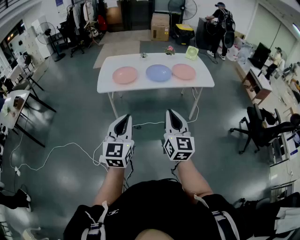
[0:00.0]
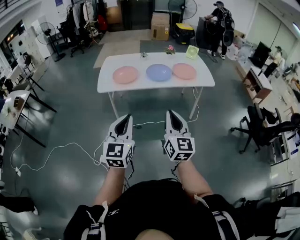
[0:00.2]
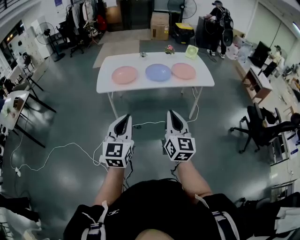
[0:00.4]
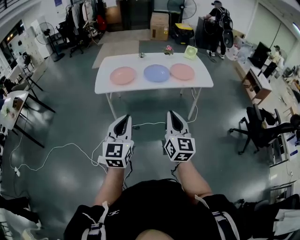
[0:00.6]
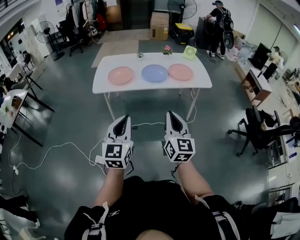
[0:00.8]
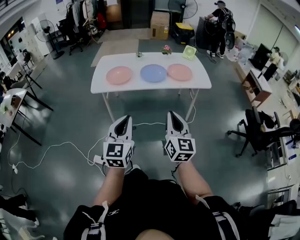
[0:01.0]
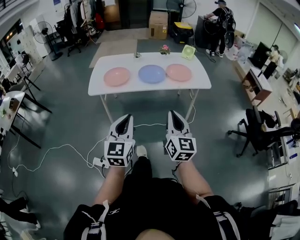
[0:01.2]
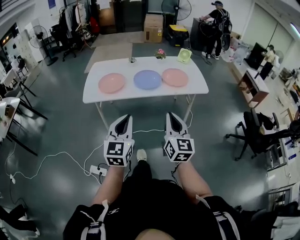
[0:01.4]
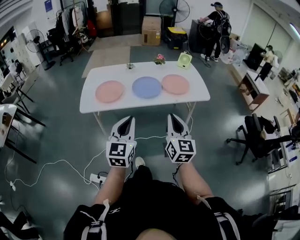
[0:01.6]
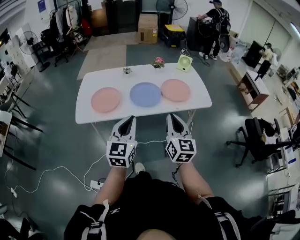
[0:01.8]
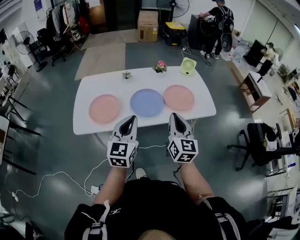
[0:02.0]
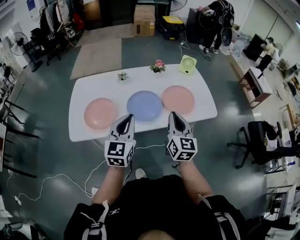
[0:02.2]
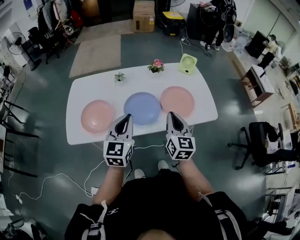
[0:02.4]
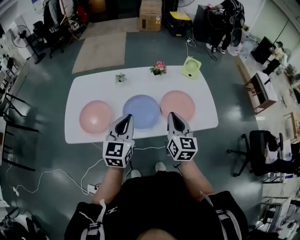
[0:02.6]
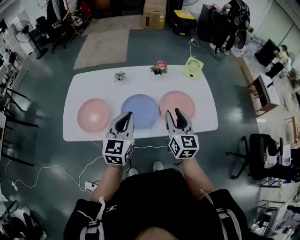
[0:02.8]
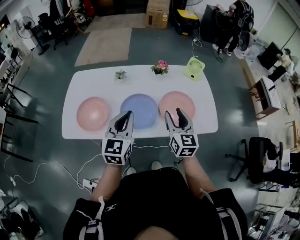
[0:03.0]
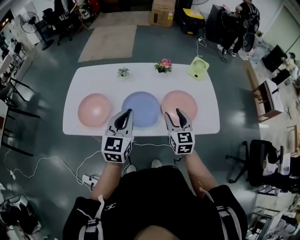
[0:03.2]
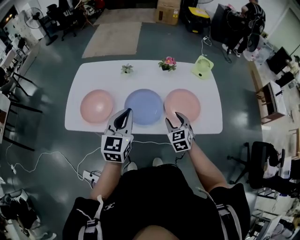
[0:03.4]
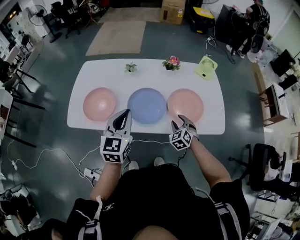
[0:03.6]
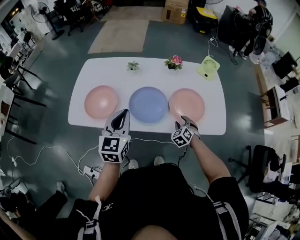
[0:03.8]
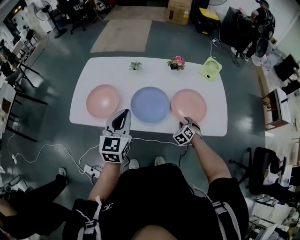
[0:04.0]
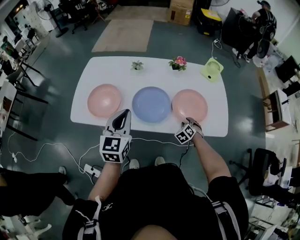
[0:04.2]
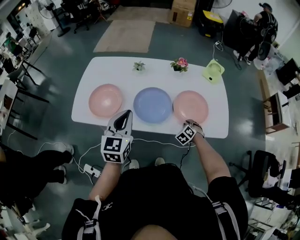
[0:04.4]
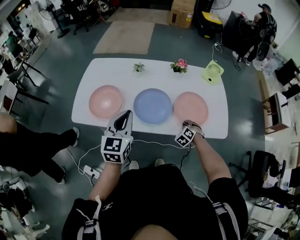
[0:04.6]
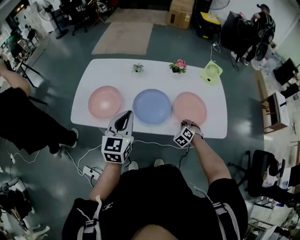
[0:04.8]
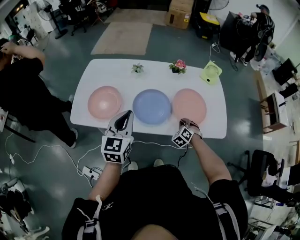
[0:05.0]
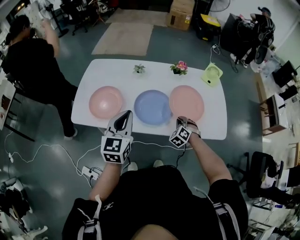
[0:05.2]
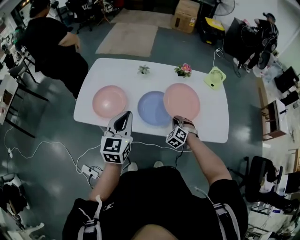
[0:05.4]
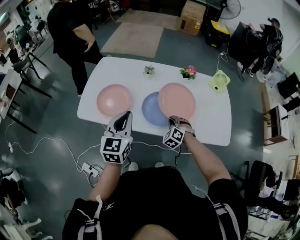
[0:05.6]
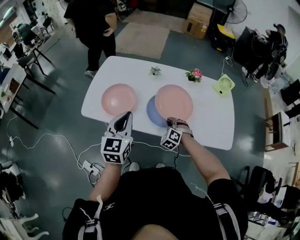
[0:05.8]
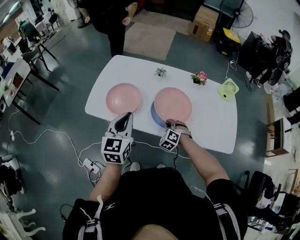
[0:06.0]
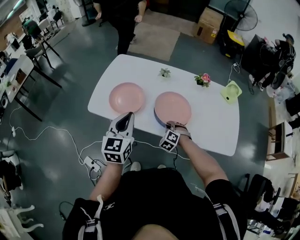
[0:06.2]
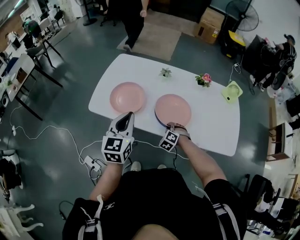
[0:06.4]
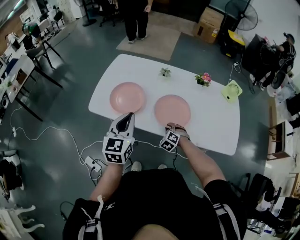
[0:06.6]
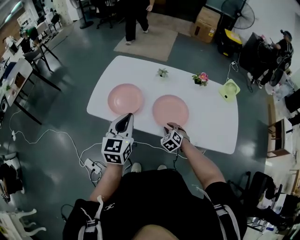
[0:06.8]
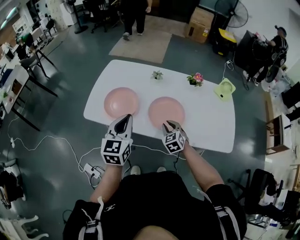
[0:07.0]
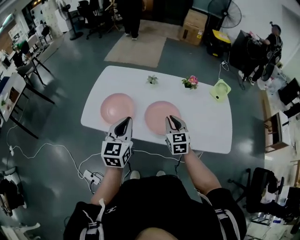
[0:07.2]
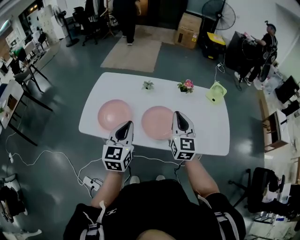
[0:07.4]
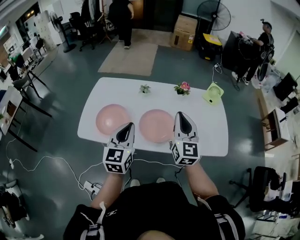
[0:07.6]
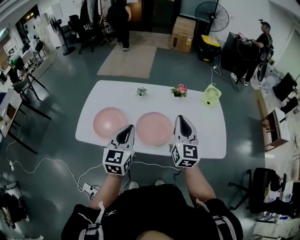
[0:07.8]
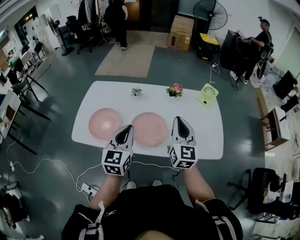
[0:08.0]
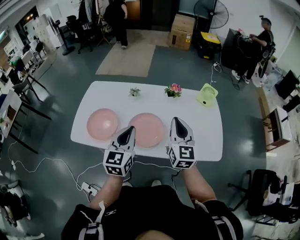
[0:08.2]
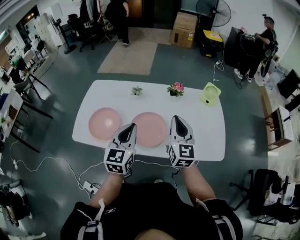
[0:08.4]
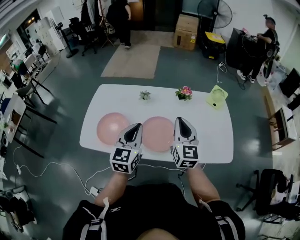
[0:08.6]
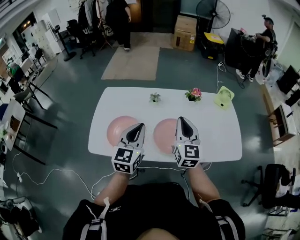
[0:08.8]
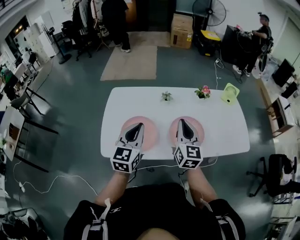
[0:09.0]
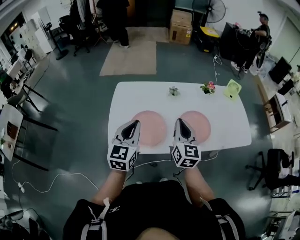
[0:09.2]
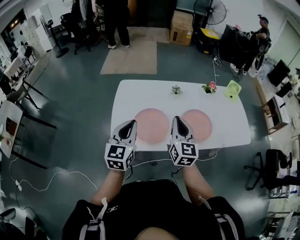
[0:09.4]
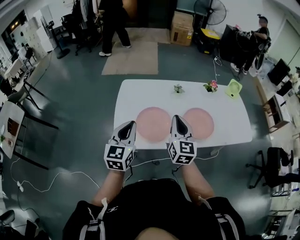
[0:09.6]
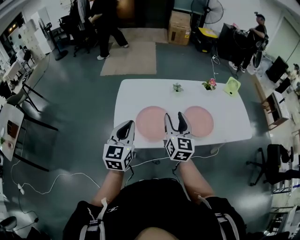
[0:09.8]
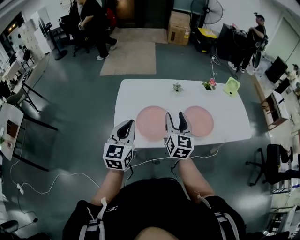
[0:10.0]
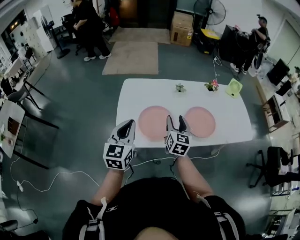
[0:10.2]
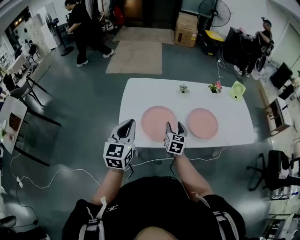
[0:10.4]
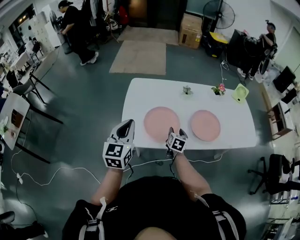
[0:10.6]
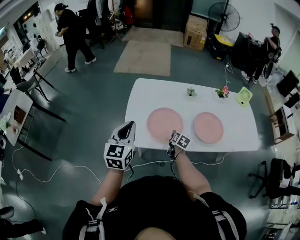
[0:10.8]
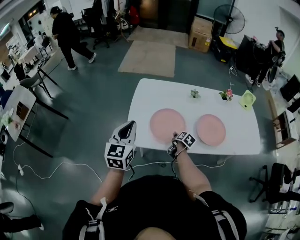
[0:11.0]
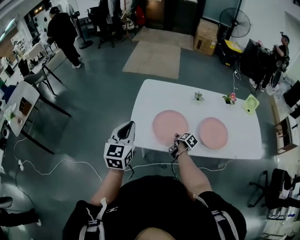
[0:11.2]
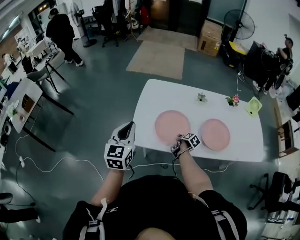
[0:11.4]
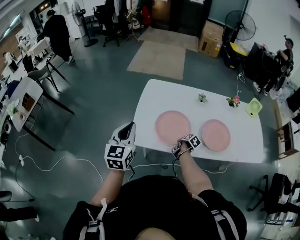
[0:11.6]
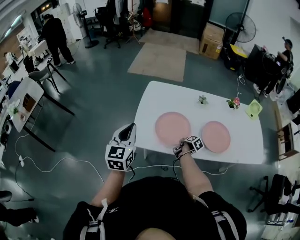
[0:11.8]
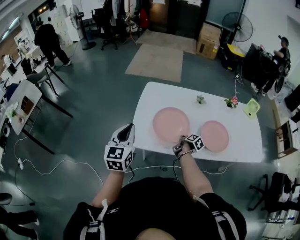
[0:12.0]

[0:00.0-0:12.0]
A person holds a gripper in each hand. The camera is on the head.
0:00.0 to 0:01.6: Both grippers move forward, roughly 25 cm.
0:01.6 to 0:03.0: The pair of grippers is taken forward, roughly 50 cm. The right gripper opens up.
0:03.0 to 0:04.4: The left gripper is displaced to the left by approximately 5 cm. The right gripper shifts about 30 cm downward, angles its fingers downward, by approximately 50 degrees, and closes.
0:04.4 to 0:06.0: The left gripper travels to the left by roughly 10 cm. Meanwhile the right gripper moves to the left, some 25 cm, and turns by approximately 30 degrees.
0:06.0 to 0:07.6: The left gripper shifts about 5 cm to the right, while the right gripper heads upward, covering approximately 30 cm, and tilts its fingers some 50 degrees upward.
0:07.6 to 0:09.0: The right gripper shifts roughly 20 cm to the left. The left gripper moves to the left and forward, approximately 20 cm.
0:09.0 to 0:10.4: The right gripper moves to the left and downward, some 25 cm, swivels some 20 degrees, and opens its fingers. Meanwhile the left gripper heads to the left and backward, covering about 25 cm.
0:10.4 to 0:12.0: The right gripper shifts roughly 15 cm downward, rolls clockwise, seen from behind, by about 60 degrees, and closes up. Meanwhile the left gripper goes some 5 cm to the left.

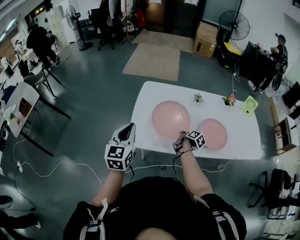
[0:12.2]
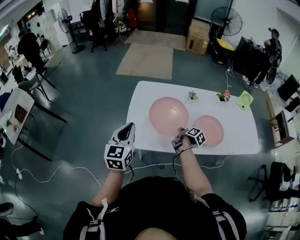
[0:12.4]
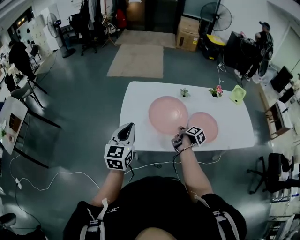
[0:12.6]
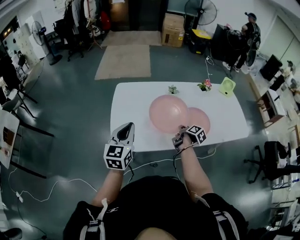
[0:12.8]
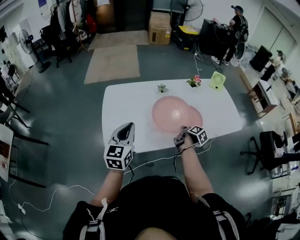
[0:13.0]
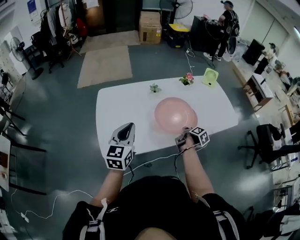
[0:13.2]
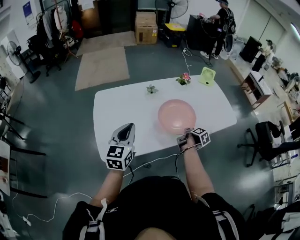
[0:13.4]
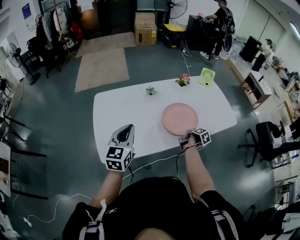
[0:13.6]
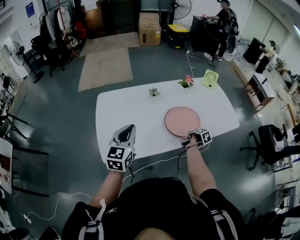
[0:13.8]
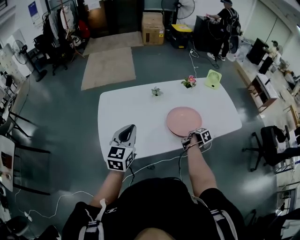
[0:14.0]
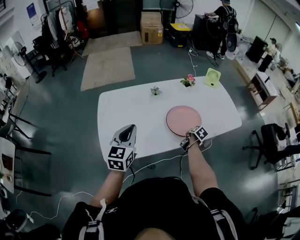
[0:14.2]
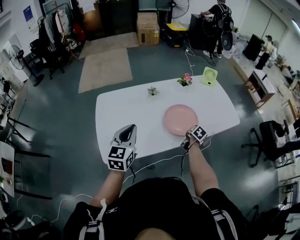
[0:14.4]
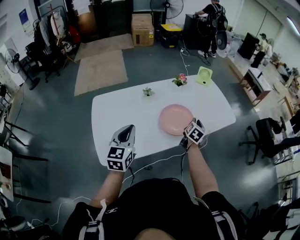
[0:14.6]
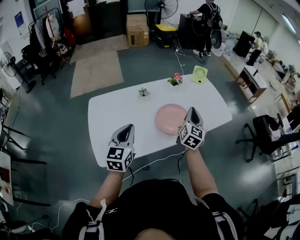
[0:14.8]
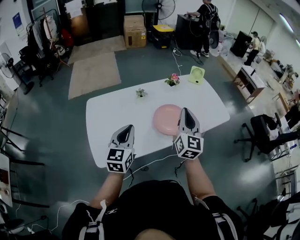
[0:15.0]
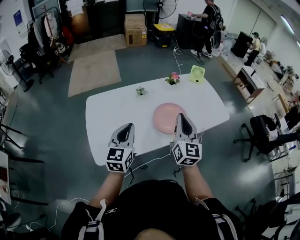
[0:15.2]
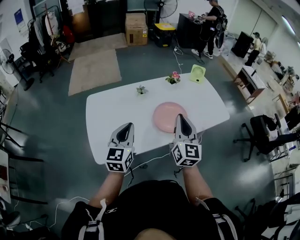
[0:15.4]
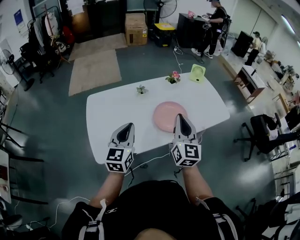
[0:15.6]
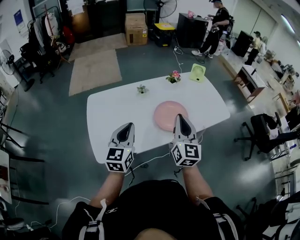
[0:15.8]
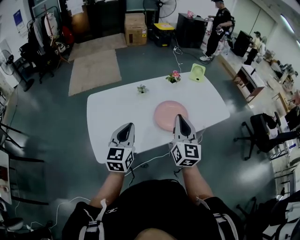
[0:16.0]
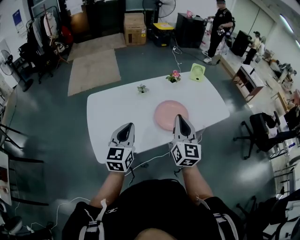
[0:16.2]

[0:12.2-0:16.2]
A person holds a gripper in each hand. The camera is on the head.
0:12.2 to 0:13.6: The left gripper changes place by approximately 20 cm, and rotates about 30 degrees; the right gripper ends up about 30 cm from where it was, and changes its angle by approximately 40 degrees.
0:13.6 to 0:14.8: The right gripper is displaced upward by roughly 25 cm, tips its fingers upward by roughly 40 degrees, and opens, then closes once more.
0:14.8 to 0:16.2: The right gripper heads backward and to the left, covering about 15 cm.

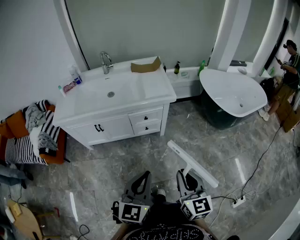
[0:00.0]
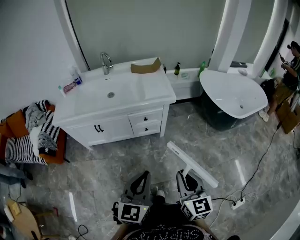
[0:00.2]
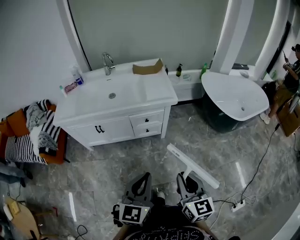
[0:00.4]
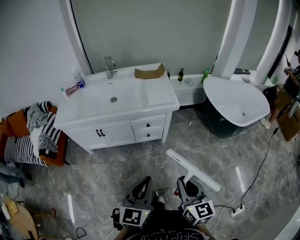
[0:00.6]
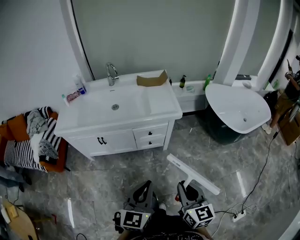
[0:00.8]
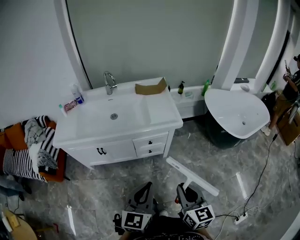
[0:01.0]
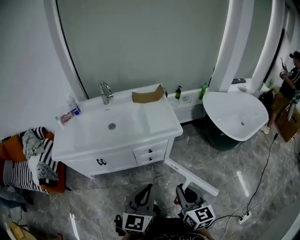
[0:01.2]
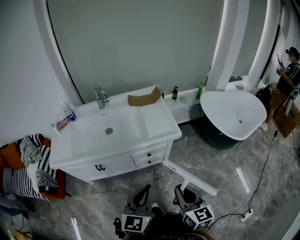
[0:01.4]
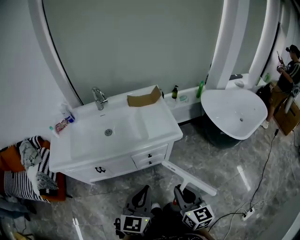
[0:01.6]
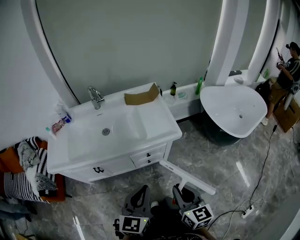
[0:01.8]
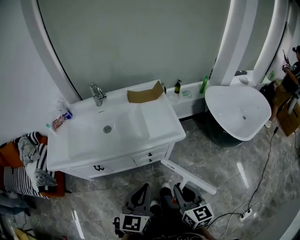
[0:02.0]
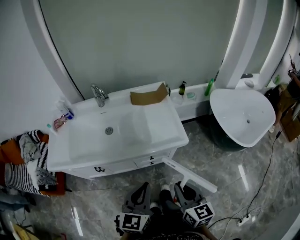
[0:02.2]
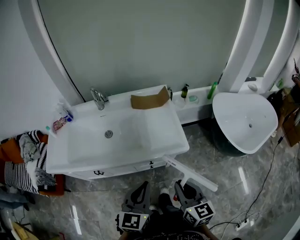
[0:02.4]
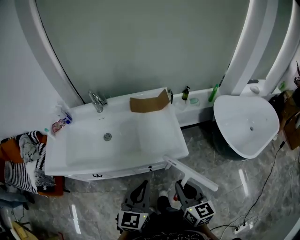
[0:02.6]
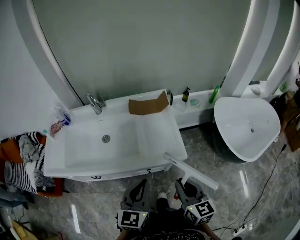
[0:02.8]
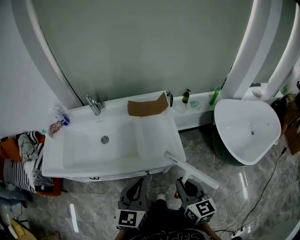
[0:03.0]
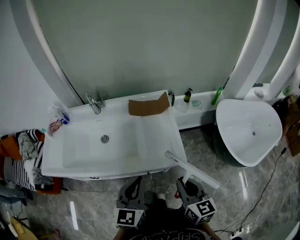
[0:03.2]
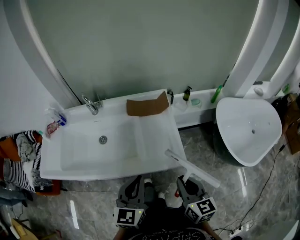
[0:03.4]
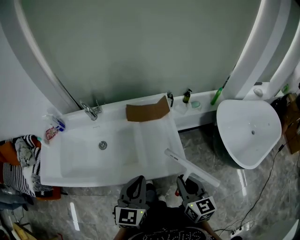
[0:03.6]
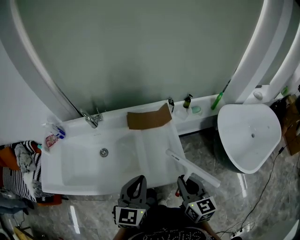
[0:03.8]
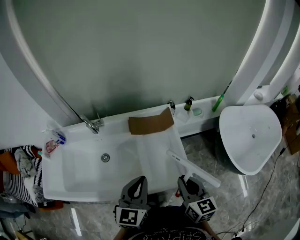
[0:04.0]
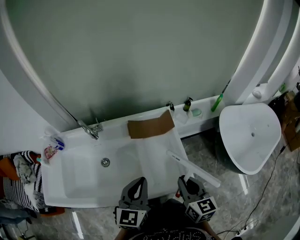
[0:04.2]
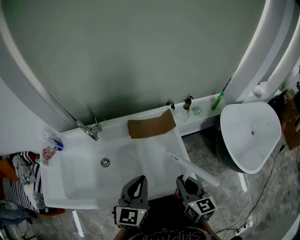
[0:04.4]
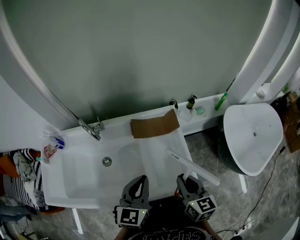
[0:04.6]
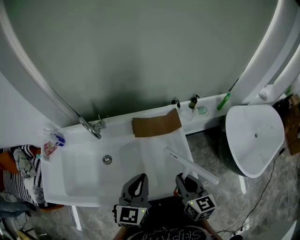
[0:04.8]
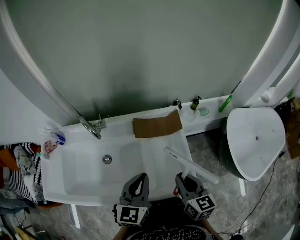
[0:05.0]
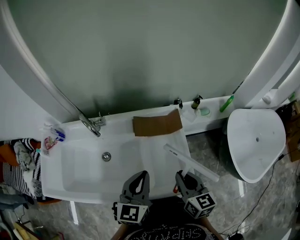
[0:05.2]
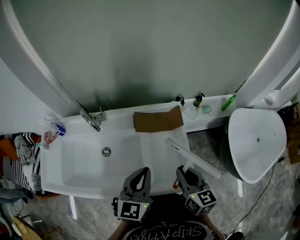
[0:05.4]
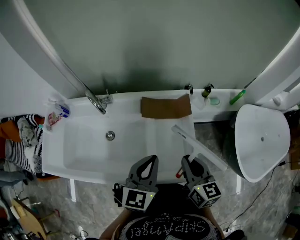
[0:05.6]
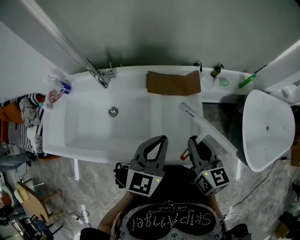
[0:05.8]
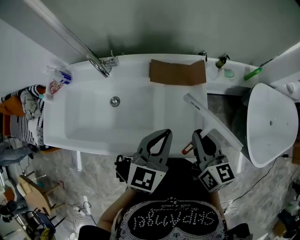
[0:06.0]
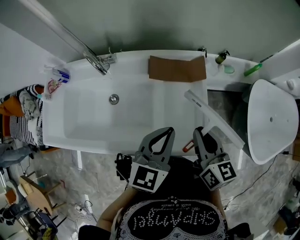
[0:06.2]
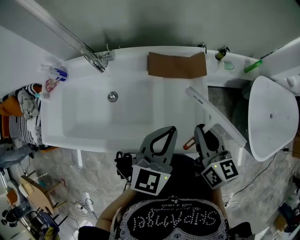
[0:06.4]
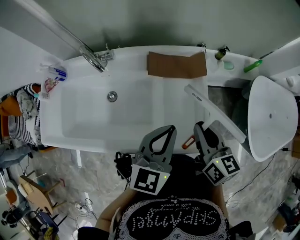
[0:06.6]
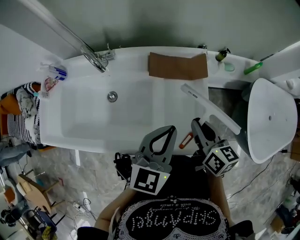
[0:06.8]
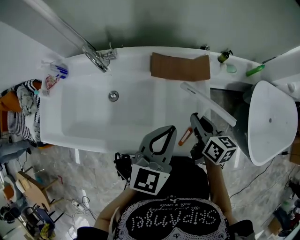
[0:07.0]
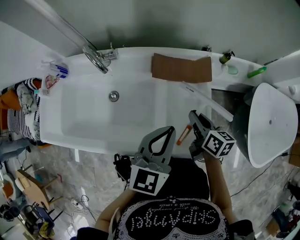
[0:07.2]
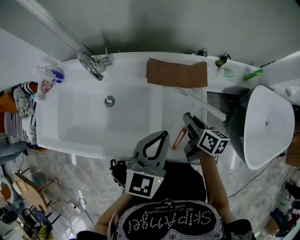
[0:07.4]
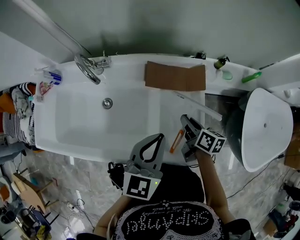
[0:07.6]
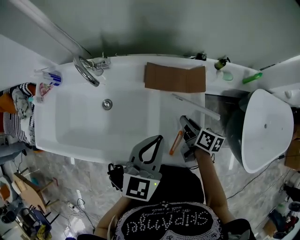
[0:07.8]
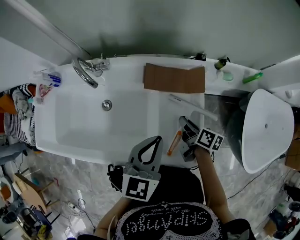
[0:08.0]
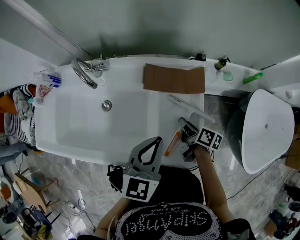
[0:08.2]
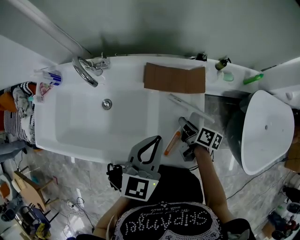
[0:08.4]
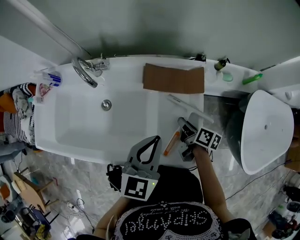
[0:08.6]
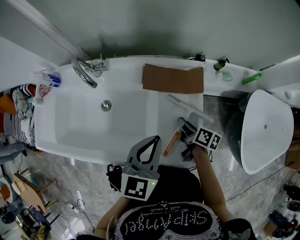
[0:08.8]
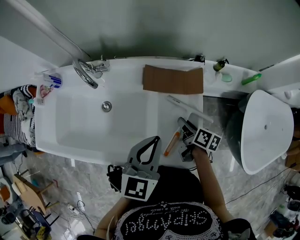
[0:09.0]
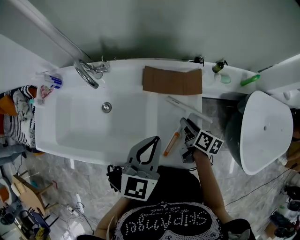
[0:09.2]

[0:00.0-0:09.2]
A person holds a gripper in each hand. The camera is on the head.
0:00.0 to 0:01.6: Both grippers travel together forward, roughly 20 cm.
0:01.6 to 0:03.0: The two grippers go about 20 cm forward.
0:03.0 to 0:04.6: The two grippers go roughly 20 cm forward.
0:04.6 to 0:06.2: The left gripper is displaced to the right by some 5 cm.
0:06.2 to 0:07.6: The right gripper heads downward and forward, covering some 20 cm, and changes its angle by roughly 30 degrees.
0:07.6 to 0:09.2: There are only small adjustments of the grippers.
